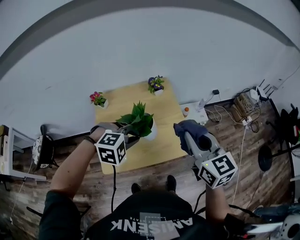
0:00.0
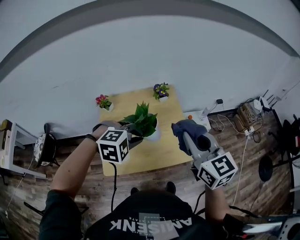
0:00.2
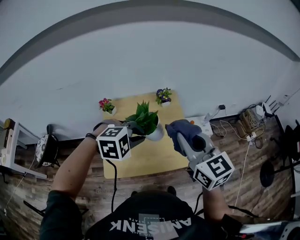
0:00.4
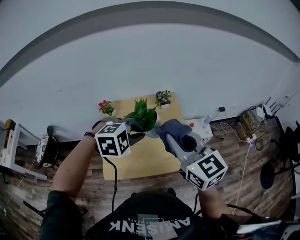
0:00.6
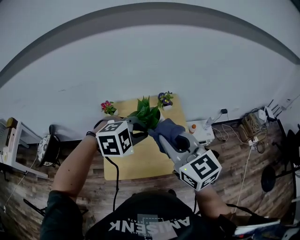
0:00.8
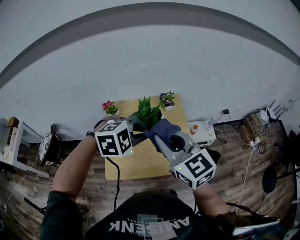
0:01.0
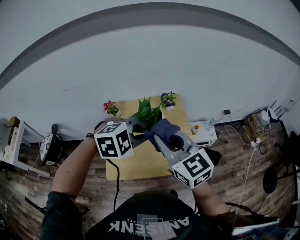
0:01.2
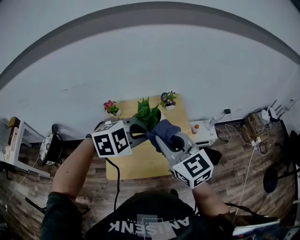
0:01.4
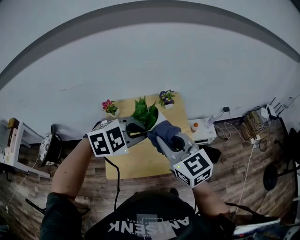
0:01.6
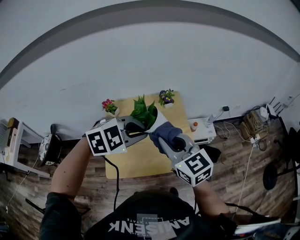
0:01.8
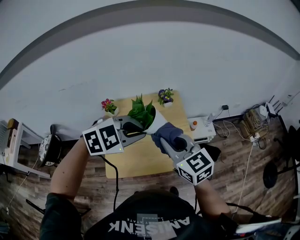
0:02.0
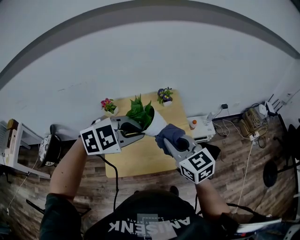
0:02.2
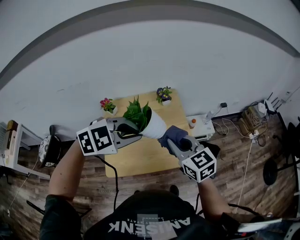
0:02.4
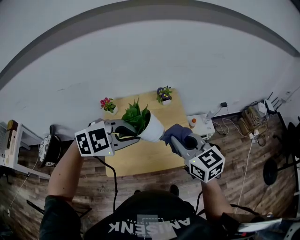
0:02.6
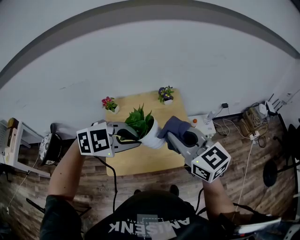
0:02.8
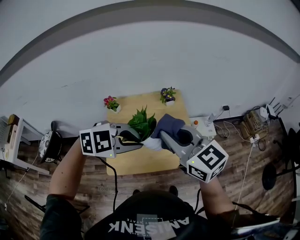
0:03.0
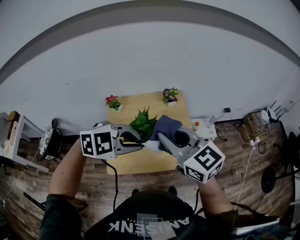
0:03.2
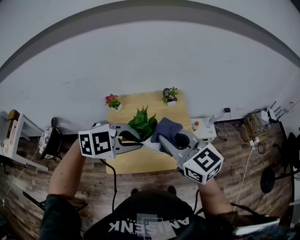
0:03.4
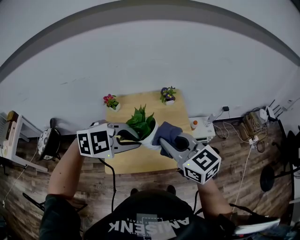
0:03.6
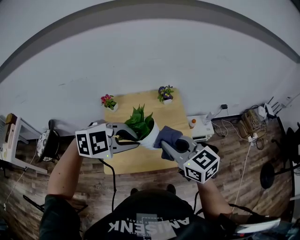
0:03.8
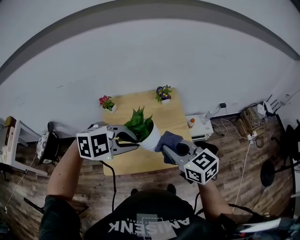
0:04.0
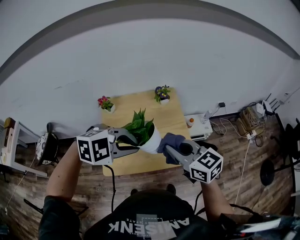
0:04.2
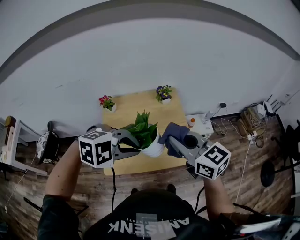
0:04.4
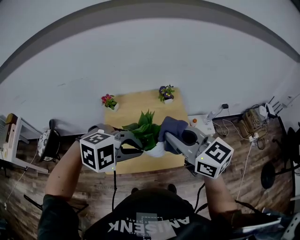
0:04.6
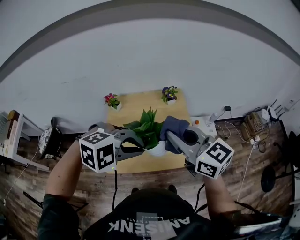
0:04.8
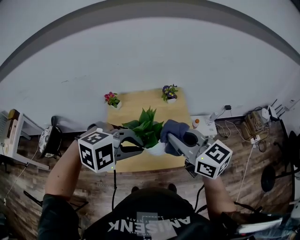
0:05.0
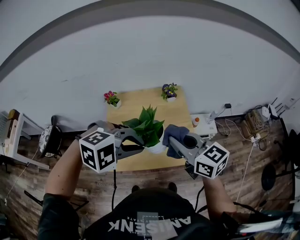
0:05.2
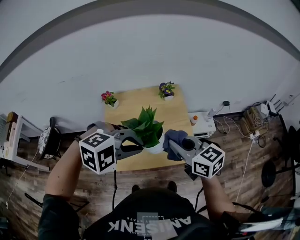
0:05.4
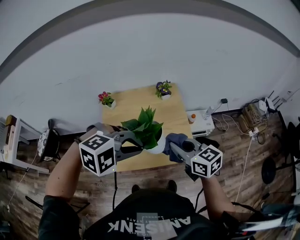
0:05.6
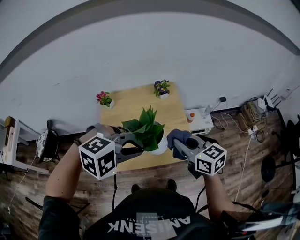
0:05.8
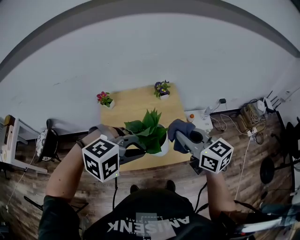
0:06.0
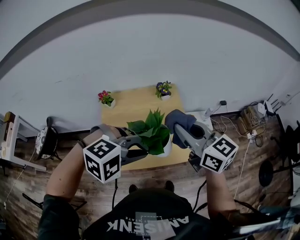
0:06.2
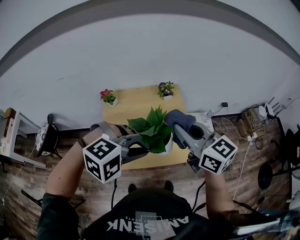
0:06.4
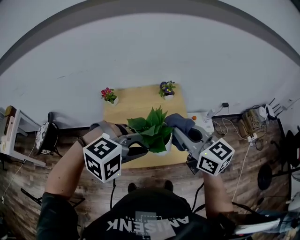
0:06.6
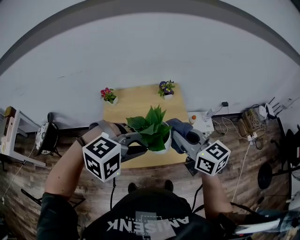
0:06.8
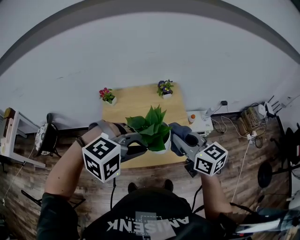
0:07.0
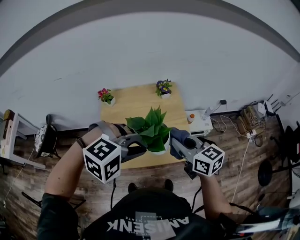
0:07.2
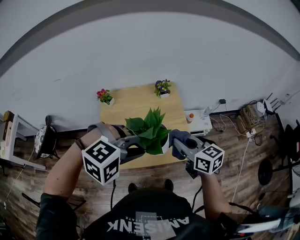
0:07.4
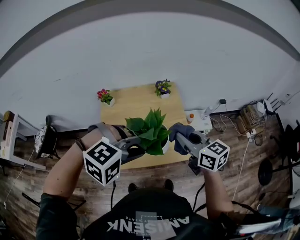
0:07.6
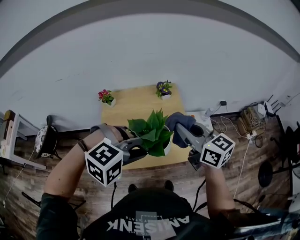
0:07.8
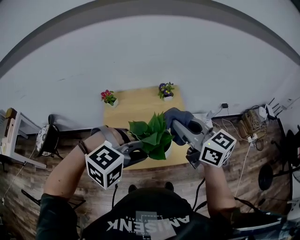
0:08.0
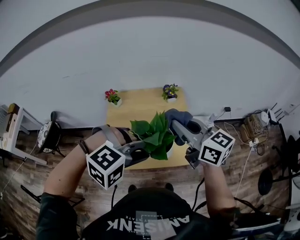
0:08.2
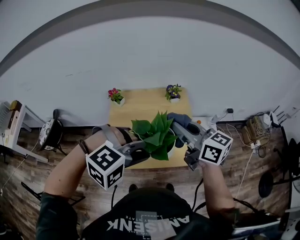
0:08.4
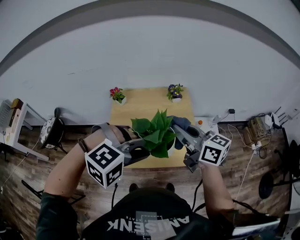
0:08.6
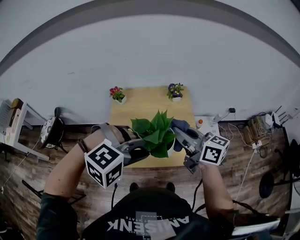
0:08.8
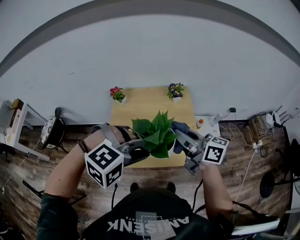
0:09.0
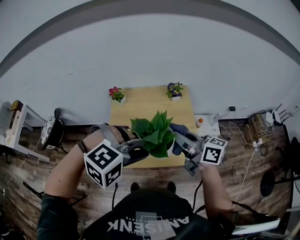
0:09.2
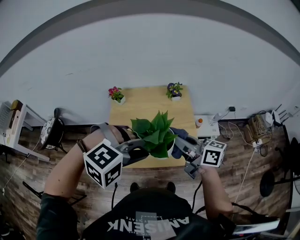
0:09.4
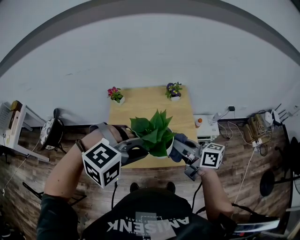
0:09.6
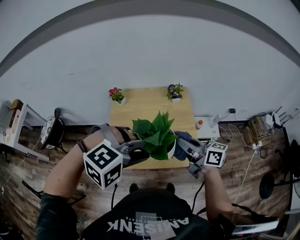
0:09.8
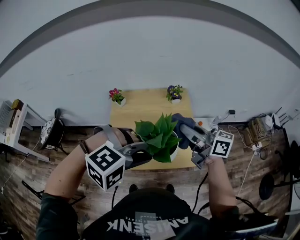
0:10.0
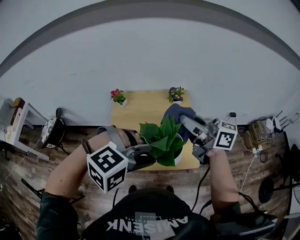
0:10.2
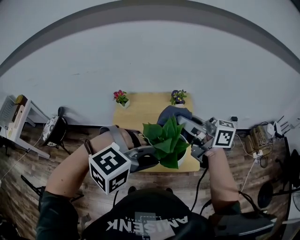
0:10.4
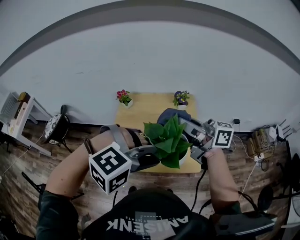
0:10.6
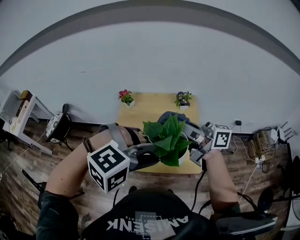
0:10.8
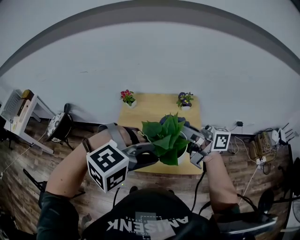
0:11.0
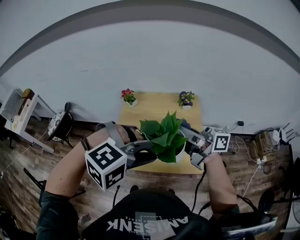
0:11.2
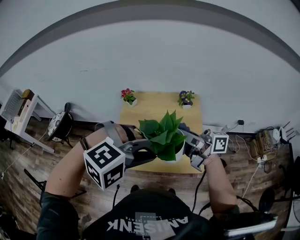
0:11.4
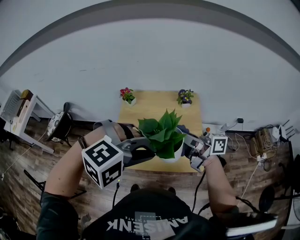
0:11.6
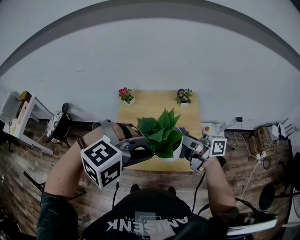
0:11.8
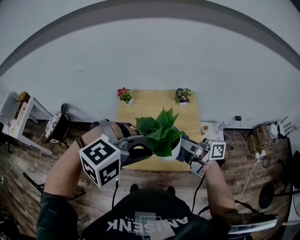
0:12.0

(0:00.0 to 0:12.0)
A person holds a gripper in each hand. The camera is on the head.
0:00.0 - 0:01.6: The left gripper is displaced upward by about 10 cm, and changes its angle by about 20 degrees. Meanwhile the right gripper goes about 10 cm to the left, and swivels approximately 20 degrees.
0:01.6 - 0:03.0: The left gripper shifts by approximately 5 cm.
0:03.0 - 0:04.4: The right gripper is displaced downward by approximately 5 cm.
0:04.4 - 0:06.0: The right gripper travels downward and back again, roughly 10 cm each way.
0:06.0 - 0:07.6: The right gripper moves roughly 5 cm downward and comes back.
0:07.6 - 0:09.0: The right gripper changes its angle by approximately 30 degrees.
0:09.0 - 0:10.4: The right gripper goes approximately 10 cm upward.
0:10.4 - 0:12.0: The right gripper goes about 10 cm downward, and changes its angle by approximately 20 degrees.

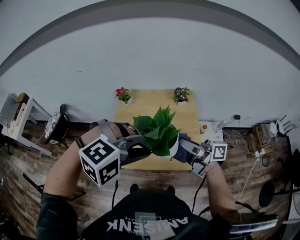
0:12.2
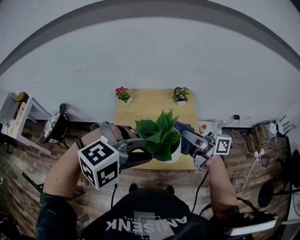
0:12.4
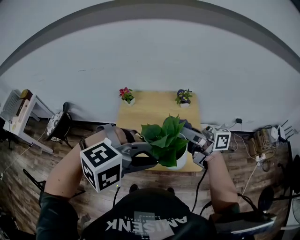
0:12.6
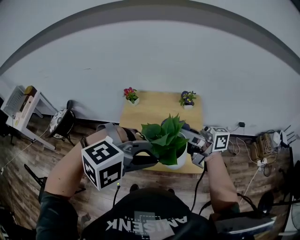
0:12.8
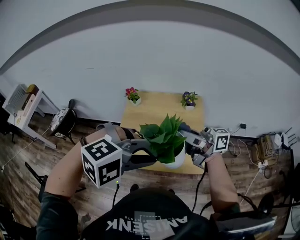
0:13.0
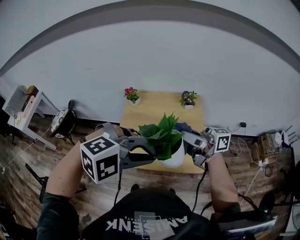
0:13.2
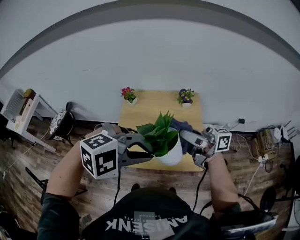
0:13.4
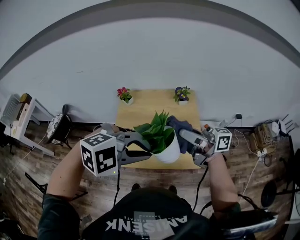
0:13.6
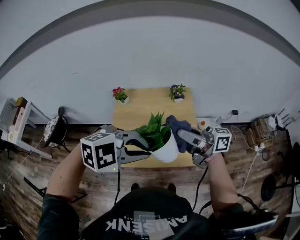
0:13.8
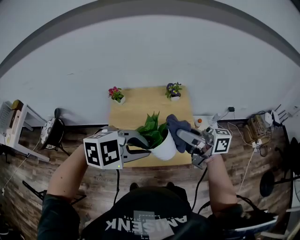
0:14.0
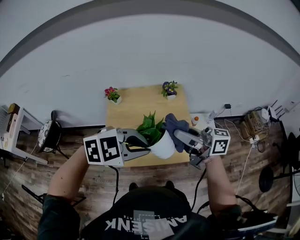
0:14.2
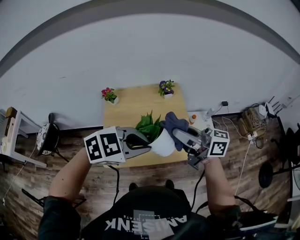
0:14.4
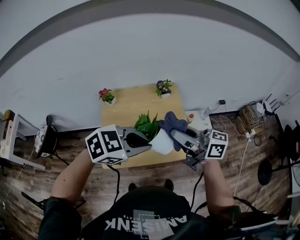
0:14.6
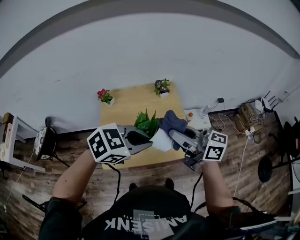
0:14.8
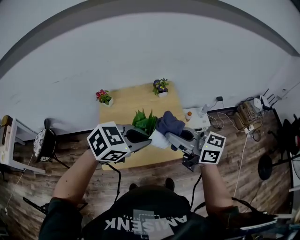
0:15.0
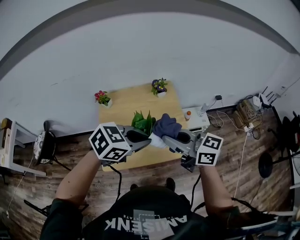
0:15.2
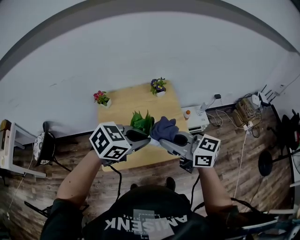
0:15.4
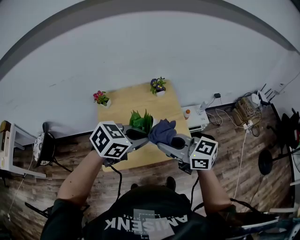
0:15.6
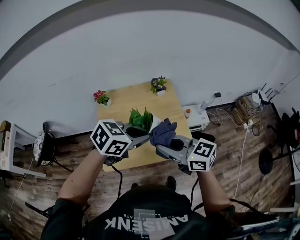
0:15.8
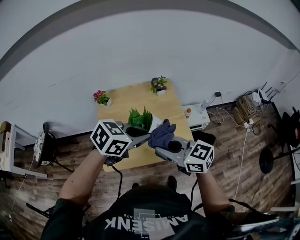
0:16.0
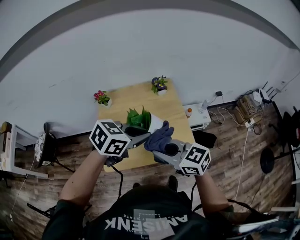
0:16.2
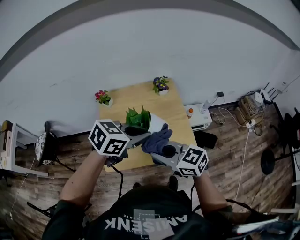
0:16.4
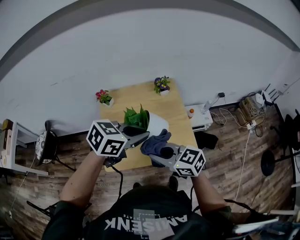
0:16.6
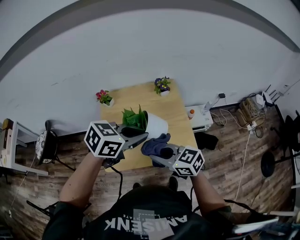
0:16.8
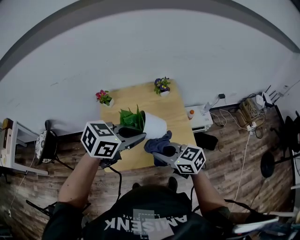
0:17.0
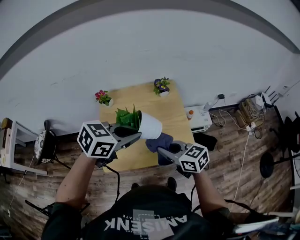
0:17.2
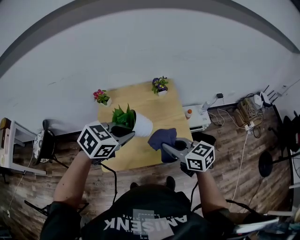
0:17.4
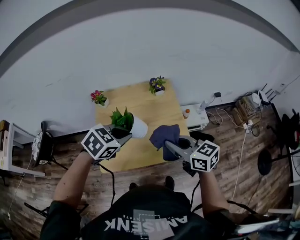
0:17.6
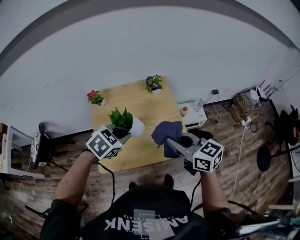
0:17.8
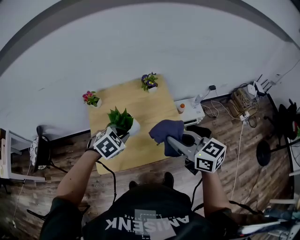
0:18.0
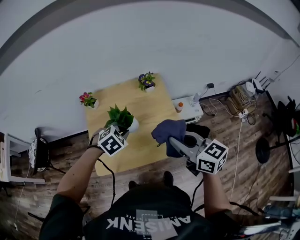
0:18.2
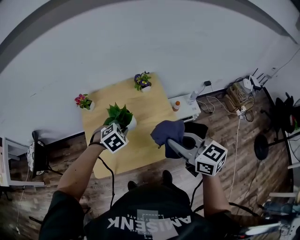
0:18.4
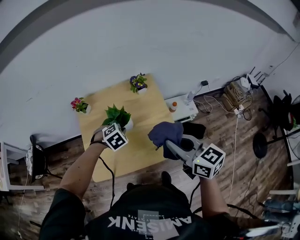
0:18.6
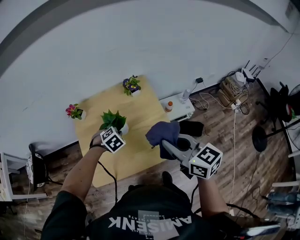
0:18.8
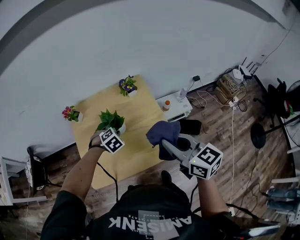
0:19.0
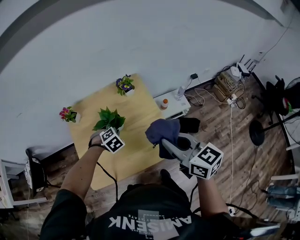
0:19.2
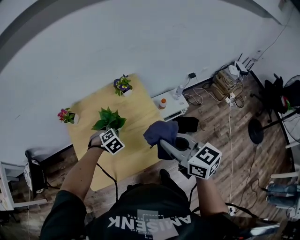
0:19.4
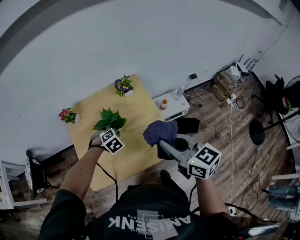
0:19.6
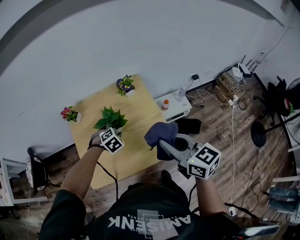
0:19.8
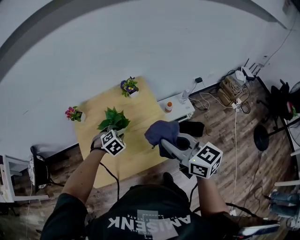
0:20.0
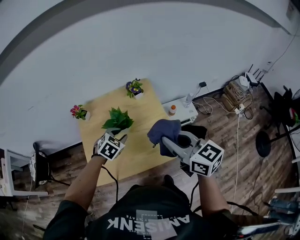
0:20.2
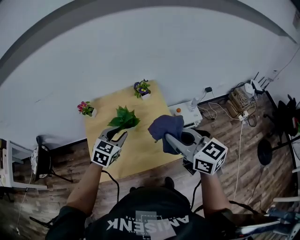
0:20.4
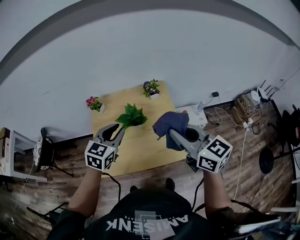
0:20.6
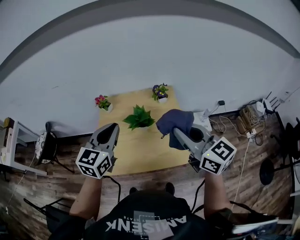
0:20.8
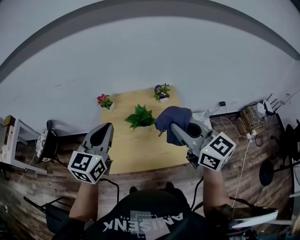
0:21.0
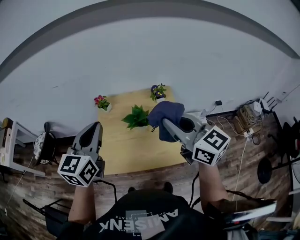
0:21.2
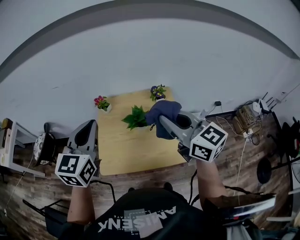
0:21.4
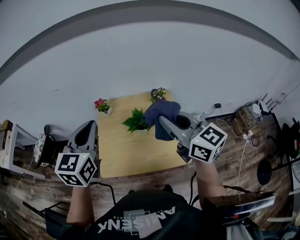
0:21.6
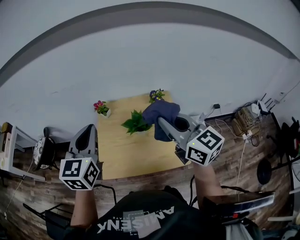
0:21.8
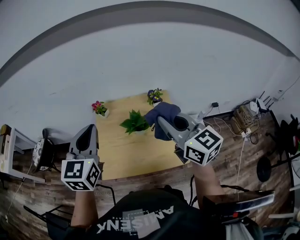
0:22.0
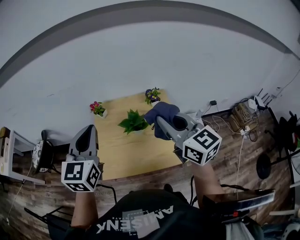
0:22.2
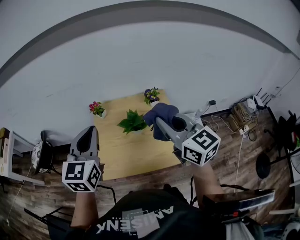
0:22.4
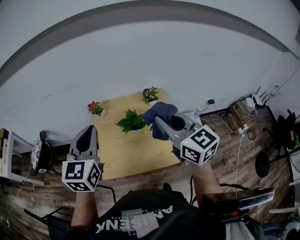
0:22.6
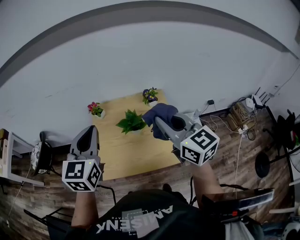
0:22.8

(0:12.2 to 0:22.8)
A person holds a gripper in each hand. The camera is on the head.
0:12.2 - 0:13.8: The right gripper moves upward, approximately 5 cm. Meanwhile the left gripper turns by about 20 degrees.
0:13.8 - 0:15.2: The right gripper changes its angle by approximately 30 degrees. The left gripper moves about 5 cm, and changes its angle by roughly 40 degrees.
0:15.2 - 0:16.8: The right gripper moves downward, some 10 cm, and swivels some 20 degrees.
0:16.8 - 0:18.2: The right gripper ends up roughly 15 cm from where it was, and turns by some 20 degrees, while the left gripper shifts approximately 15 cm downward, and changes its angle by approximately 40 degrees.
0:18.2 - 0:19.8: The left gripper heads downward and forward, covering approximately 15 cm, and opens.
0:19.8 - 0:21.2: The right gripper travels upward and to the left by some 15 cm, and rotates roughly 20 degrees. The left gripper moves upward and to the left, approximately 40 cm, tilts its fingers roughly 60 degrees upward, and closes up.
0:21.2 - 0:22.8: The grippers move only a little.

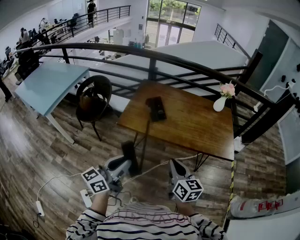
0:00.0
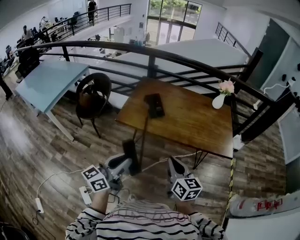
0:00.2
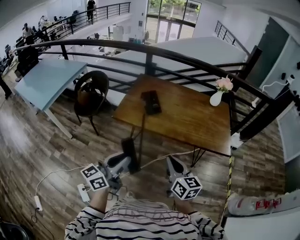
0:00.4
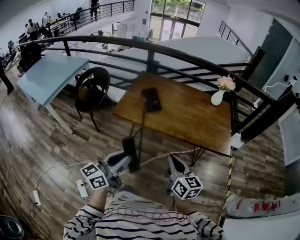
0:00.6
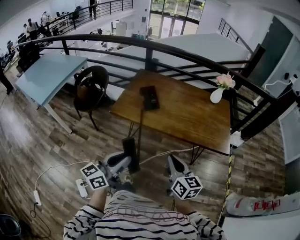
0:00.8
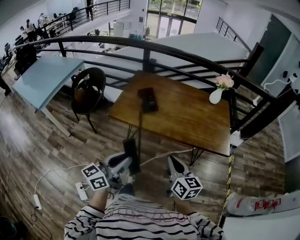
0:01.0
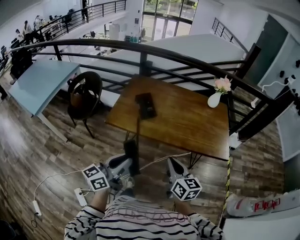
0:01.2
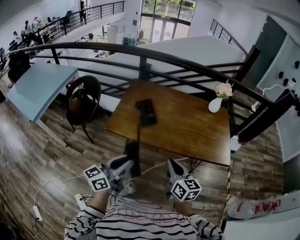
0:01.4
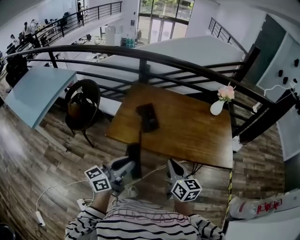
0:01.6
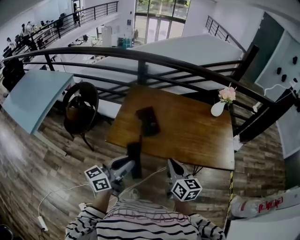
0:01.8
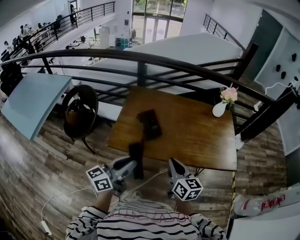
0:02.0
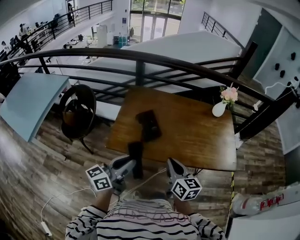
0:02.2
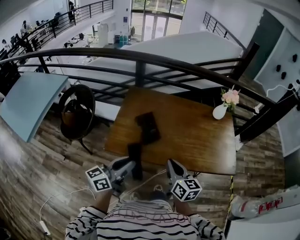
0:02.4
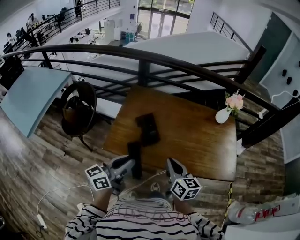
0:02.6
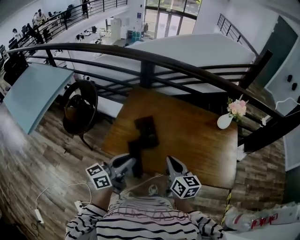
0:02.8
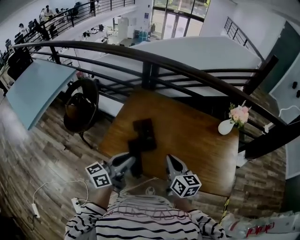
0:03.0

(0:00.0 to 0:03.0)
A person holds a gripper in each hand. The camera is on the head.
0:00.0 - 0:01.6: The two grippers go roughly 15 cm forward.
0:01.6 - 0:03.0: Both grippers move forward, approximately 20 cm.
